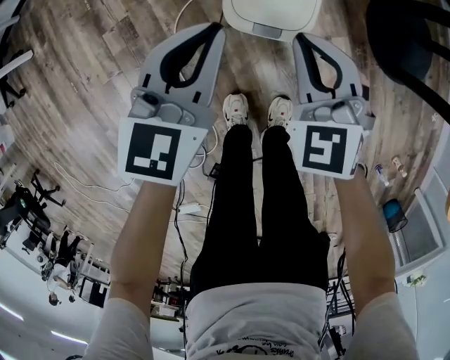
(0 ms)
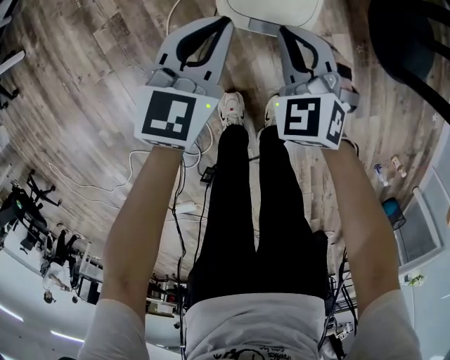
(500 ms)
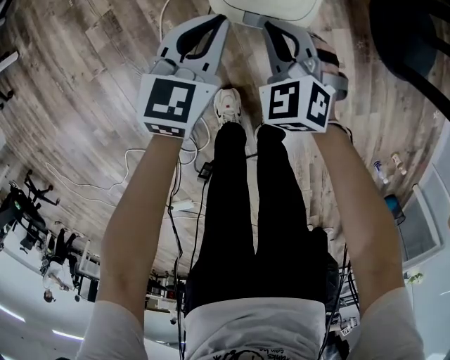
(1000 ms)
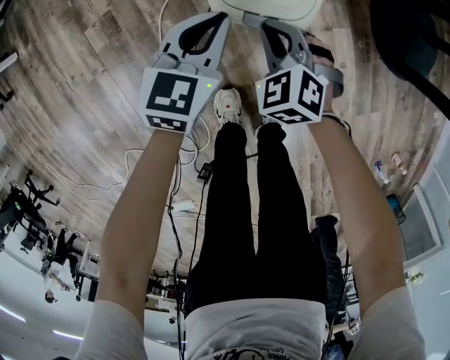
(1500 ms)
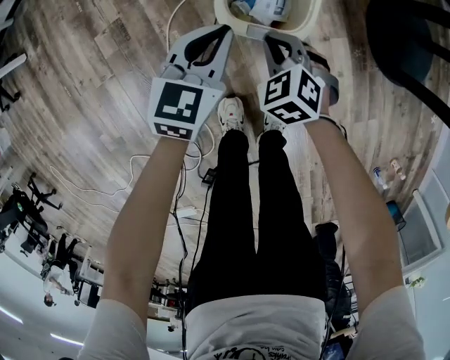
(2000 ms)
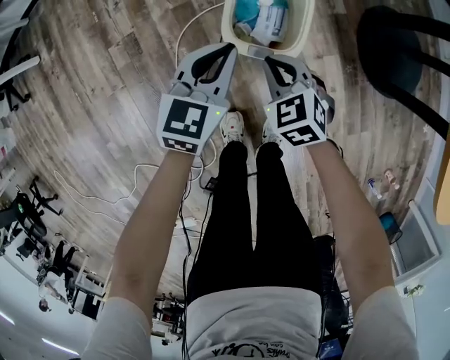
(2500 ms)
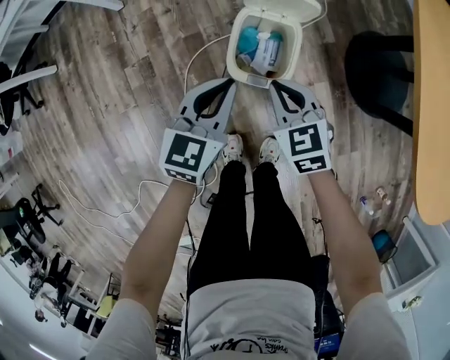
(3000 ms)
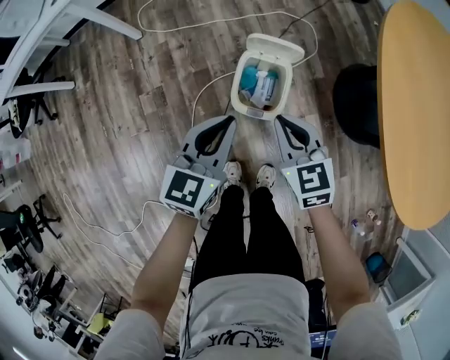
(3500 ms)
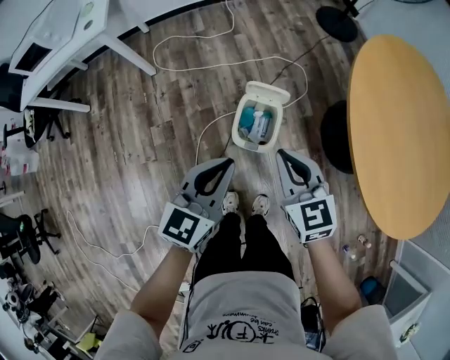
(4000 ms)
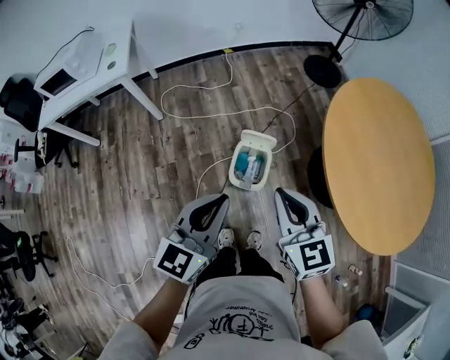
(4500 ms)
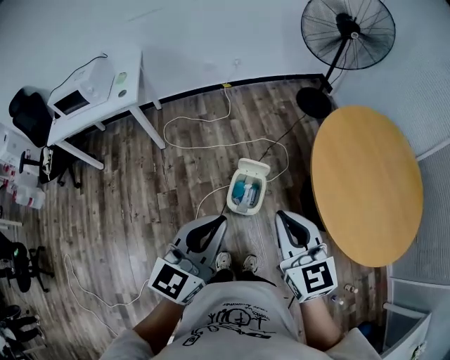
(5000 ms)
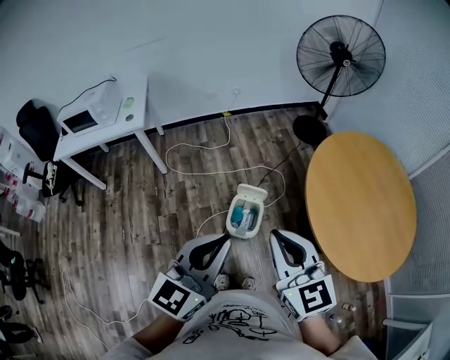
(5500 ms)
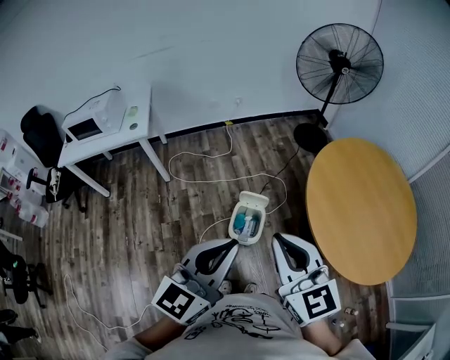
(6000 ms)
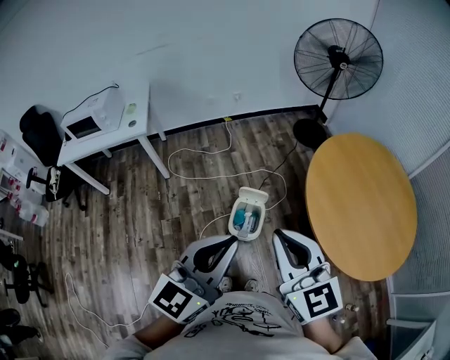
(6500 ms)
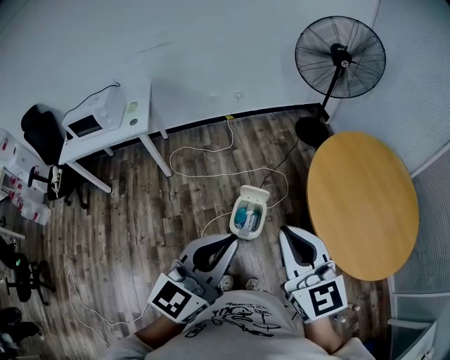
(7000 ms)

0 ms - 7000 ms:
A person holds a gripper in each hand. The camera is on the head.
0 ms - 2000 ms: Both grippers travel together downward, approximately 15 cm. The right gripper swivels about 20 degrees.
2000 ms - 3500 ms: Both grippers travel together upward, approximately 30 cm. The right gripper turns by about 30 degrees.
3500 ms - 5000 ms: Both grippers move upward, about 40 cm. The right gripper changes its angle by roughly 20 degrees.
5000 ms - 7000 ms: Both grippers travel together upward, roughly 10 cm.

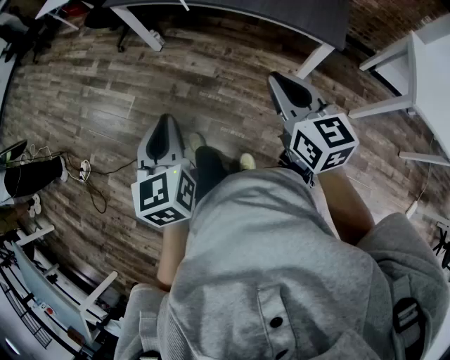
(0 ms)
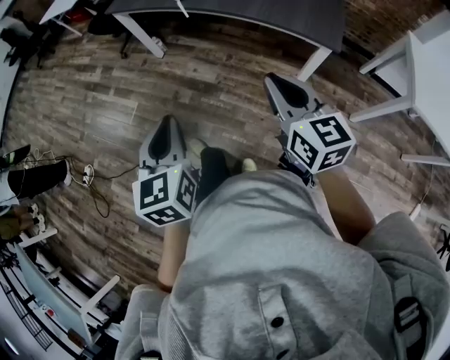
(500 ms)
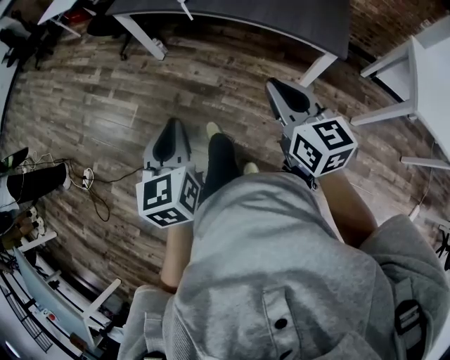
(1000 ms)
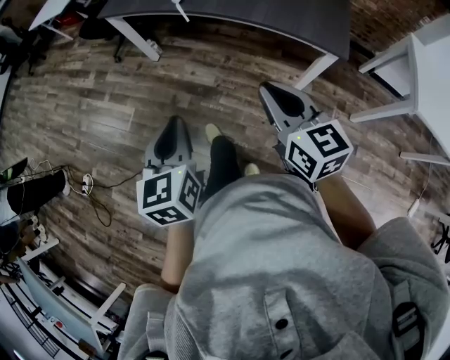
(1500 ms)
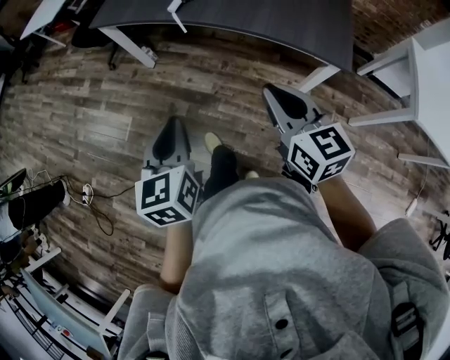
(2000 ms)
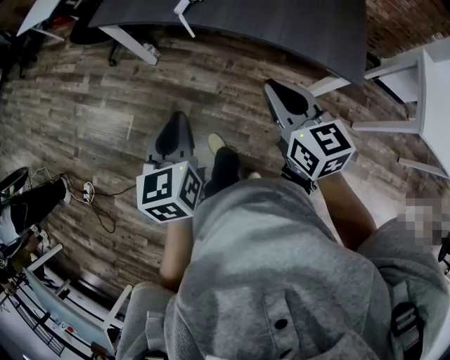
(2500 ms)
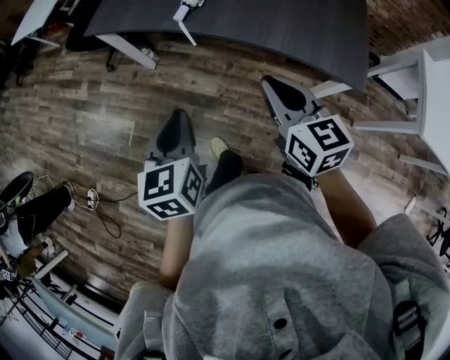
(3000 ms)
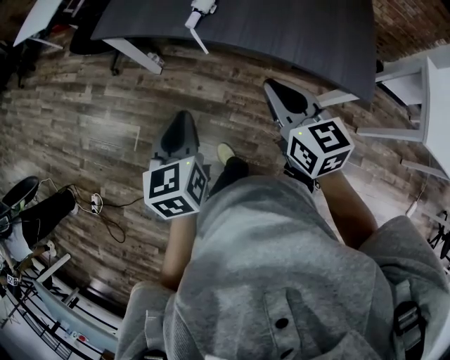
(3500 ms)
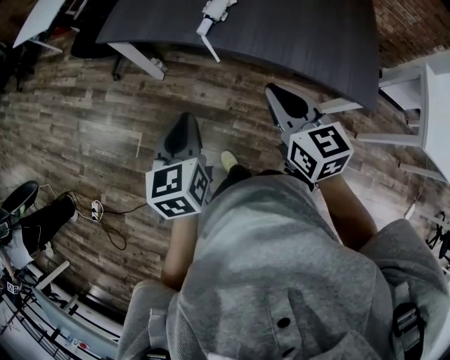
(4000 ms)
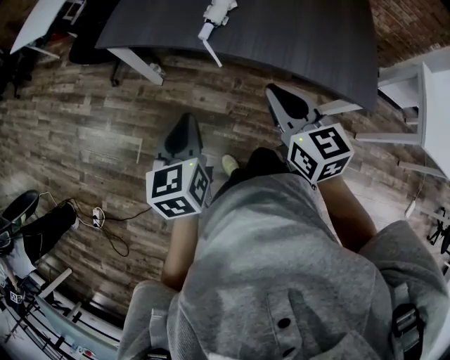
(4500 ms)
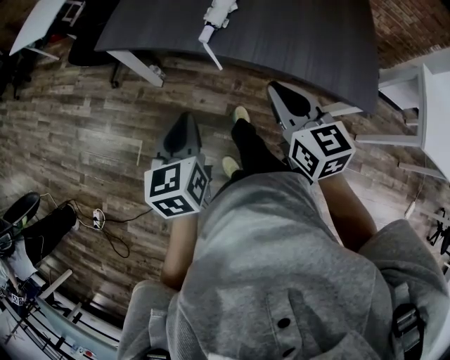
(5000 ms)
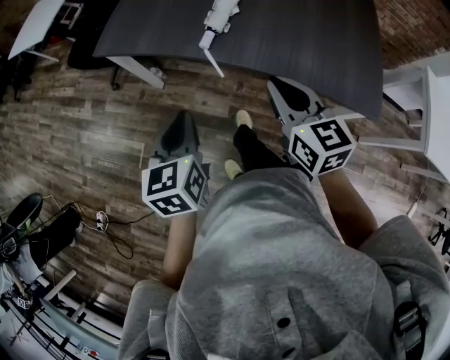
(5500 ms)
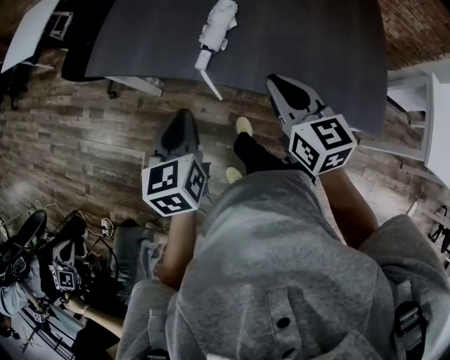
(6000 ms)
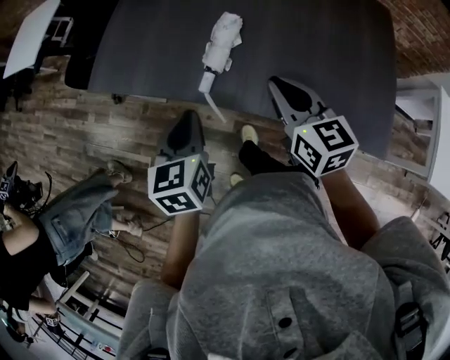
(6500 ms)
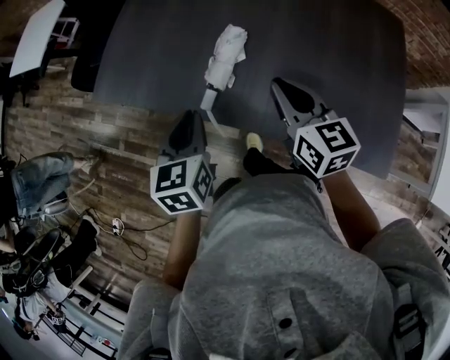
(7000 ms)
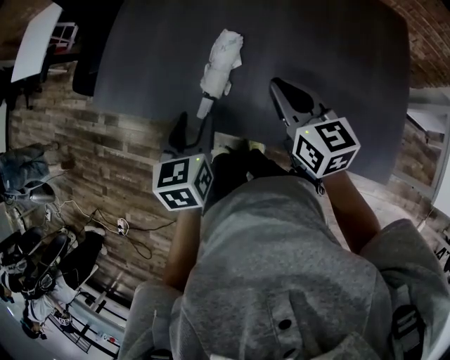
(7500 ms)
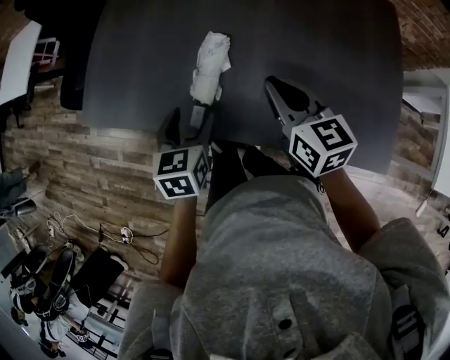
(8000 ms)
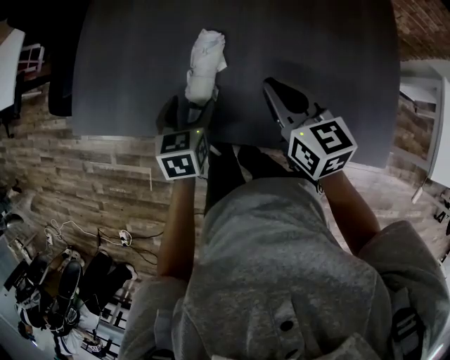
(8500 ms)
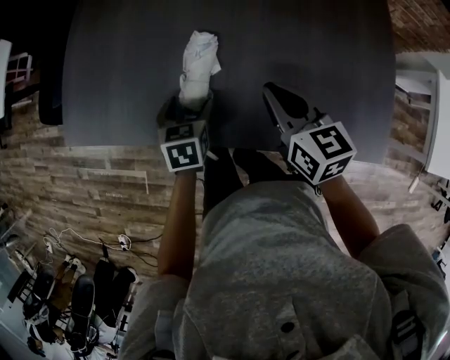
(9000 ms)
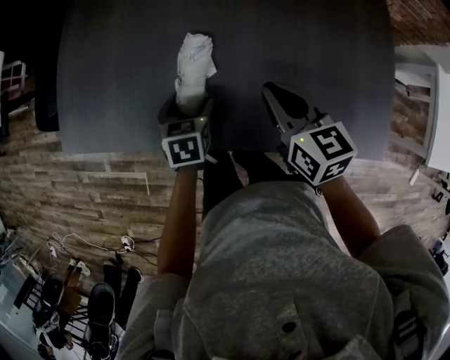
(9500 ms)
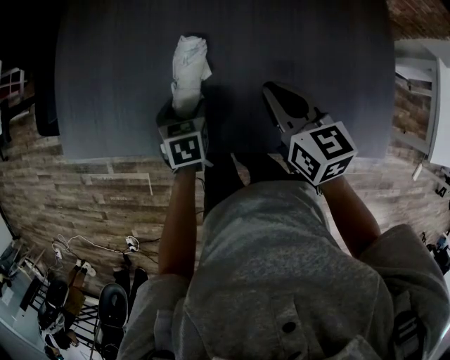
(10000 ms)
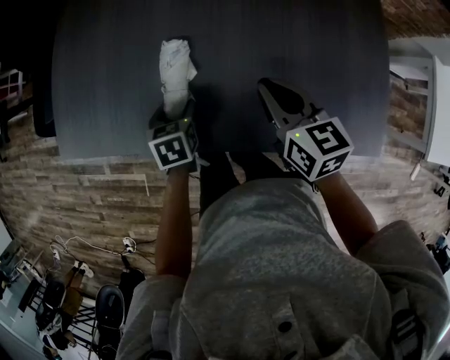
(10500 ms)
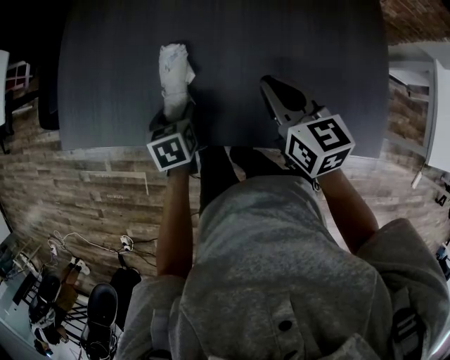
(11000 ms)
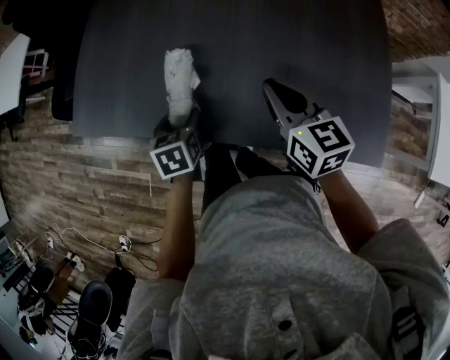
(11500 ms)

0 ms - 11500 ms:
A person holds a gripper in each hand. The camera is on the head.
0 ms - 2000 ms: Both grippers travel together forward, some 15 cm.
2000 ms - 4000 ms: The right gripper is displaced forward and to the left by about 20 cm, while the left gripper is displaced forward by roughly 20 cm.
4000 ms - 6000 ms: Both grippers move forward, roughly 15 cm.
6000 ms - 7500 ms: Both grippers travel together forward and to the right, approximately 20 cm. The left gripper opens its fingers.
7500 ms - 9500 ms: The right gripper is displaced downward by roughly 5 cm. Meanwhile the left gripper is displaced downward and forward by roughly 20 cm, turns by roughly 20 degrees, and opens its fingers.
9500 ms - 11500 ms: The left gripper goes some 5 cm backward. The right gripper changes place by approximately 5 cm.

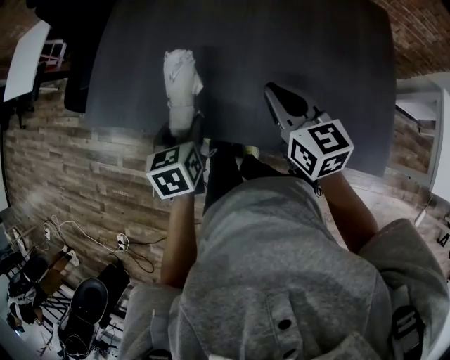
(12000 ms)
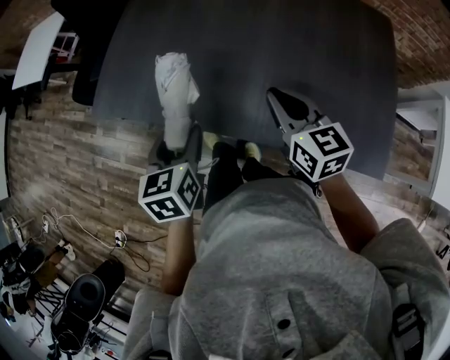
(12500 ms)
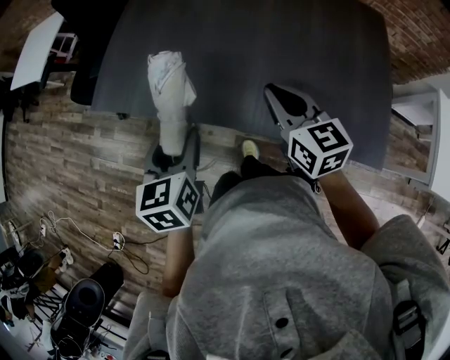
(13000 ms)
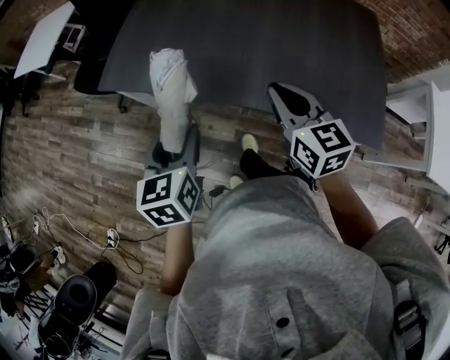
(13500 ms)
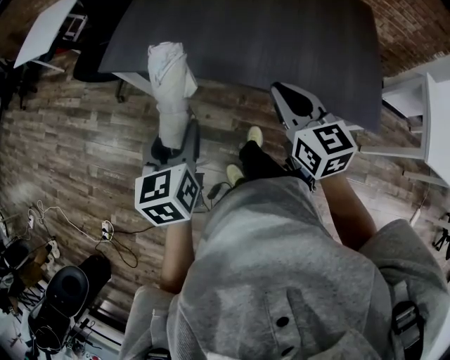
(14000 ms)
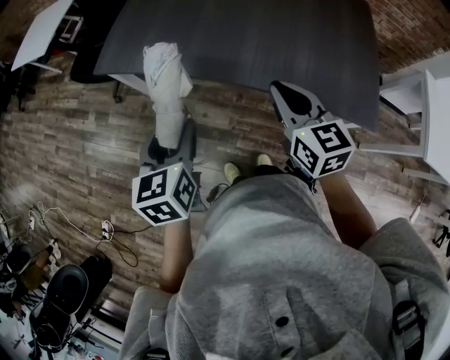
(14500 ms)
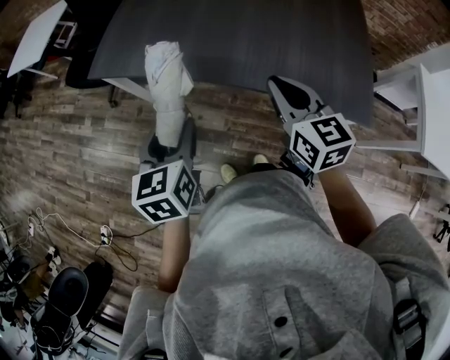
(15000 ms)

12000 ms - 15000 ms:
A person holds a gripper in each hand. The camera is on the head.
12000 ms - 13500 ms: The left gripper goes roughly 20 cm backward, upward and to the left. Meanwhile the right gripper is displaced backward and to the left by roughly 15 cm.
13500 ms - 15000 ms: Both grippers travel together backward, some 5 cm.

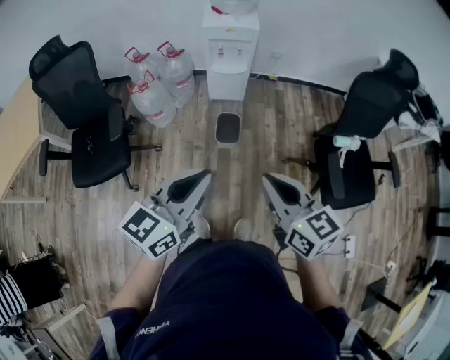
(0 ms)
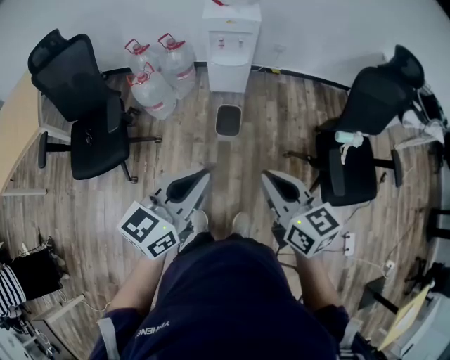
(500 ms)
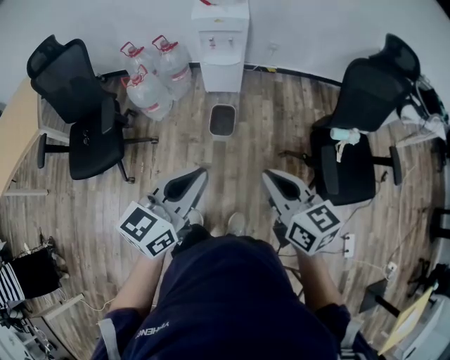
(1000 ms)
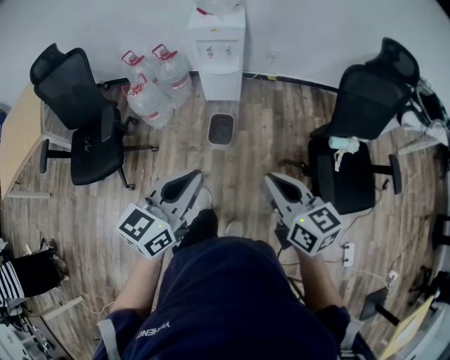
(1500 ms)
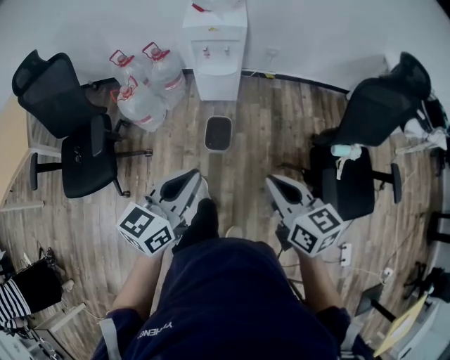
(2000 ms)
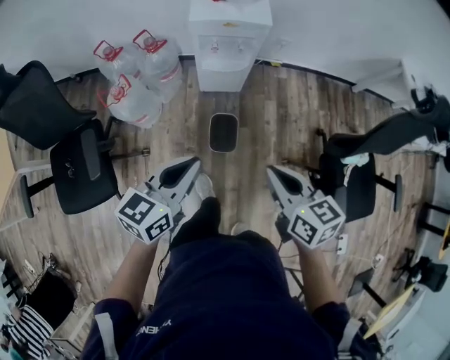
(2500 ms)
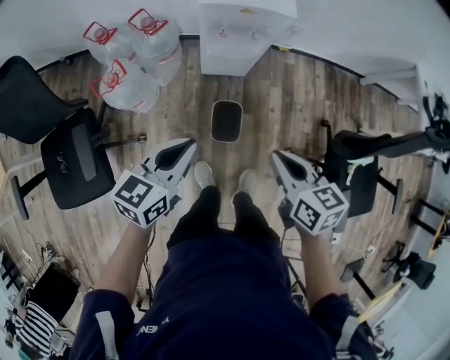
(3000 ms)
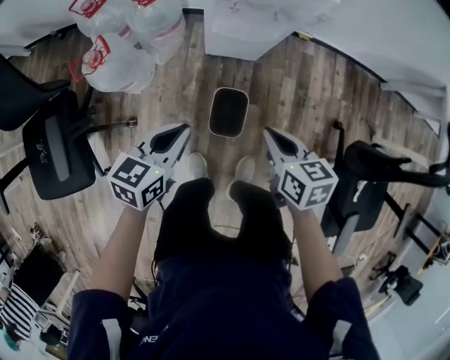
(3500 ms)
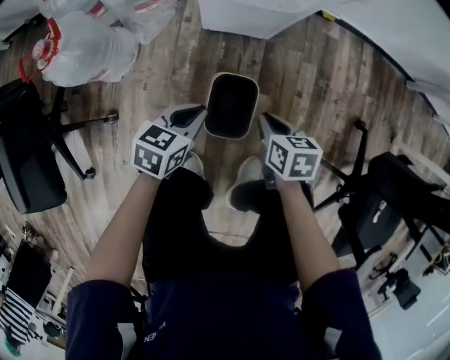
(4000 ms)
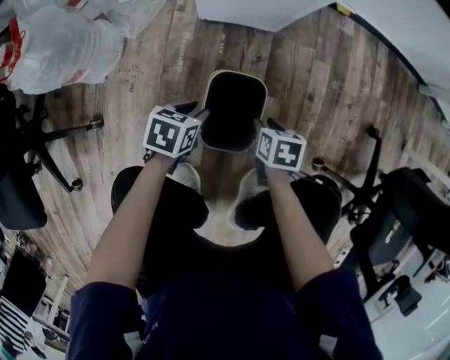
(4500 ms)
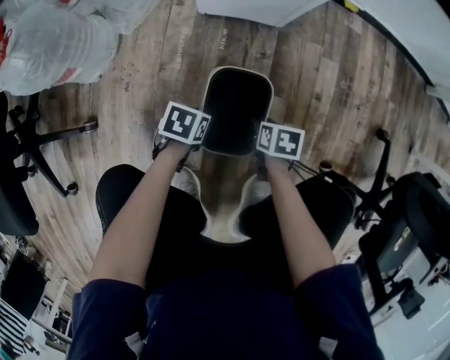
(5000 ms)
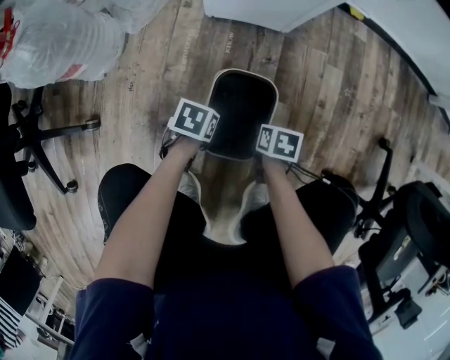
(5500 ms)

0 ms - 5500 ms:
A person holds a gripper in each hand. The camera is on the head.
0 ms - 2000 ms: The left gripper goes some 15 cm forward, downward and to the right; the right gripper shifts some 15 cm forward, to the right and downward.
2000 ms - 3500 ms: The left gripper moves forward, downward and to the left, some 50 cm, and changes its angle by some 20 degrees; the right gripper shifts some 40 cm forward and downward, and turns by approximately 20 degrees.
3500 ms - 5500 ms: The two grippers go roughly 60 cm downward. The left gripper tilts its fingers some 30 degrees downward, and opens, then closes once more, while the right gripper turns by about 30 degrees, and opens, then closes again.
